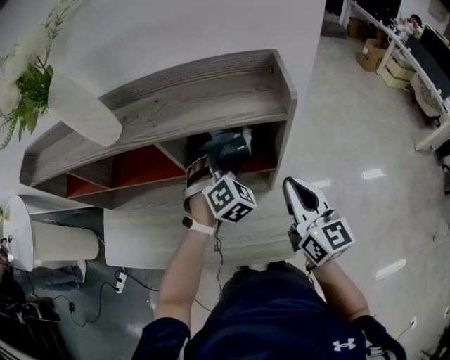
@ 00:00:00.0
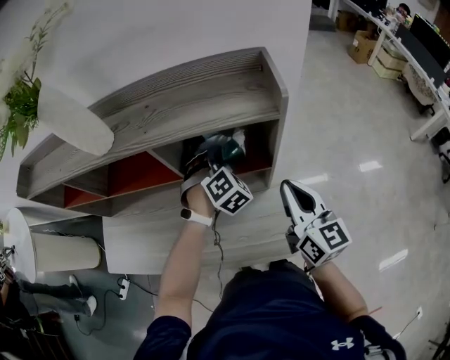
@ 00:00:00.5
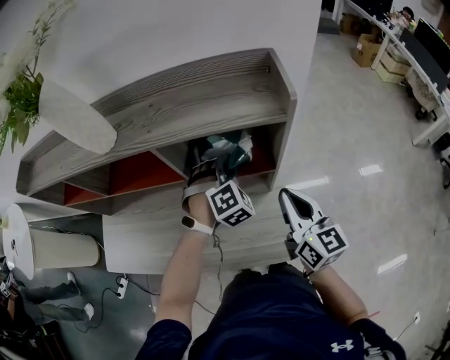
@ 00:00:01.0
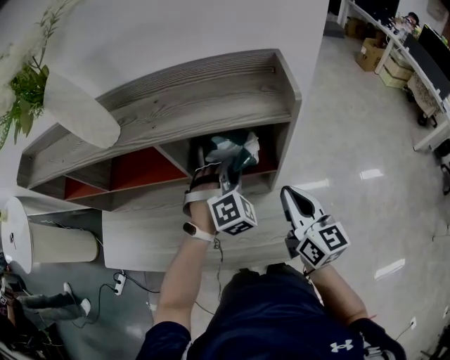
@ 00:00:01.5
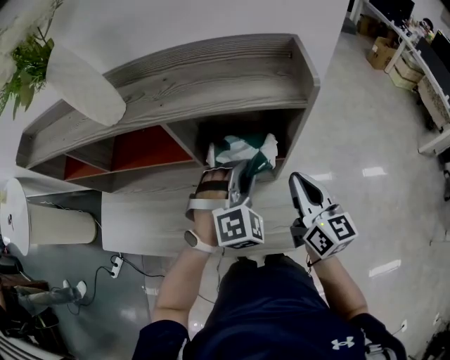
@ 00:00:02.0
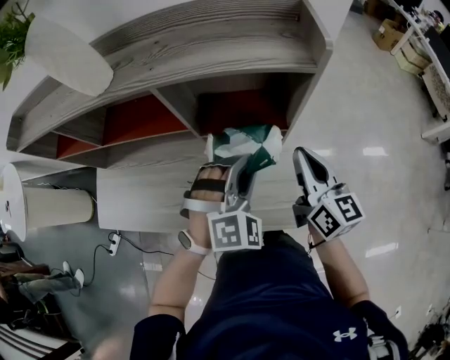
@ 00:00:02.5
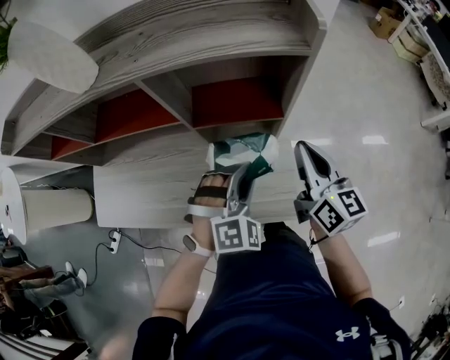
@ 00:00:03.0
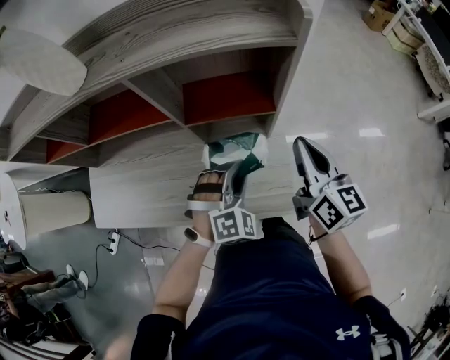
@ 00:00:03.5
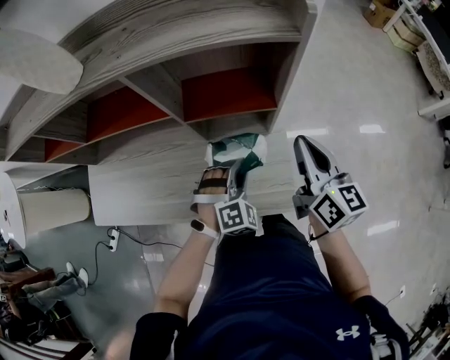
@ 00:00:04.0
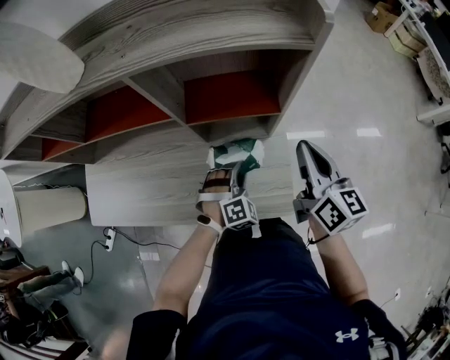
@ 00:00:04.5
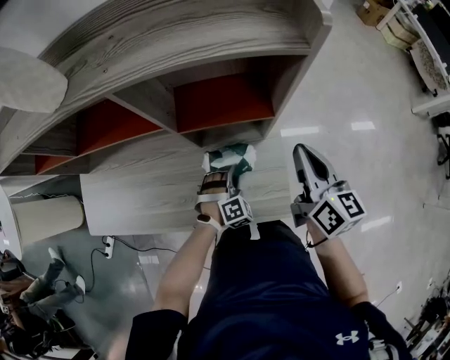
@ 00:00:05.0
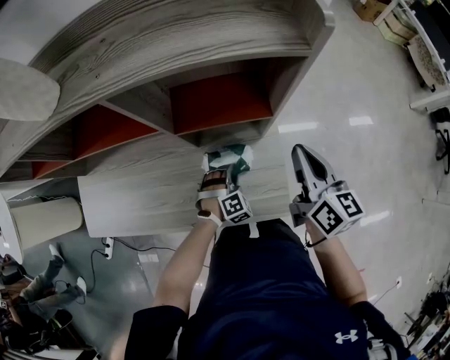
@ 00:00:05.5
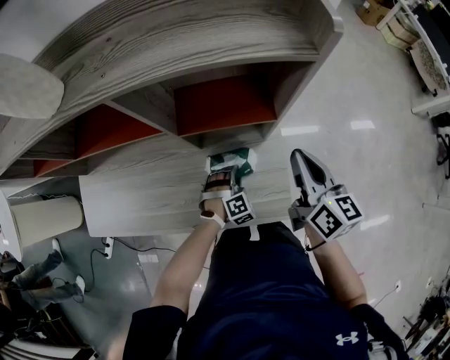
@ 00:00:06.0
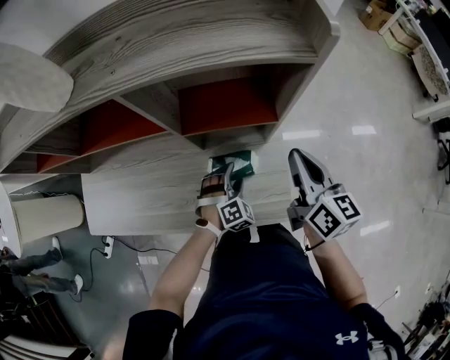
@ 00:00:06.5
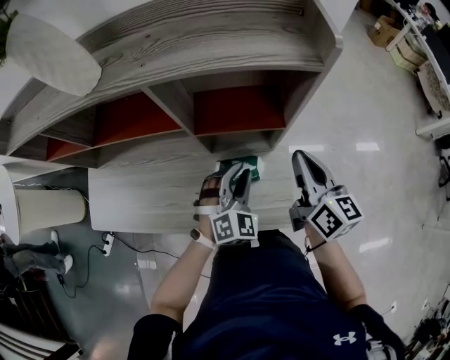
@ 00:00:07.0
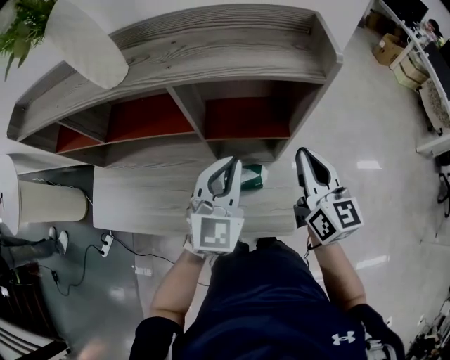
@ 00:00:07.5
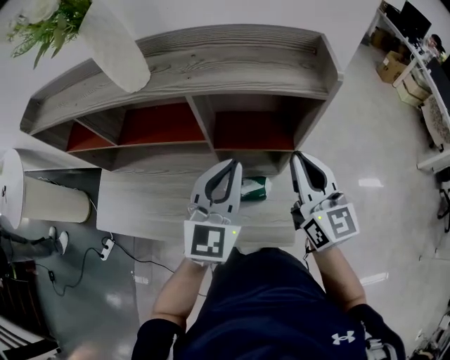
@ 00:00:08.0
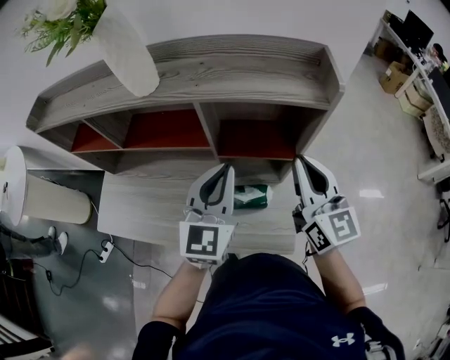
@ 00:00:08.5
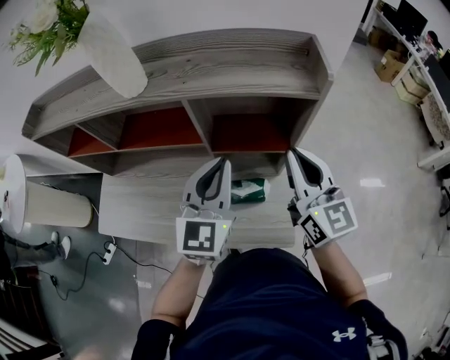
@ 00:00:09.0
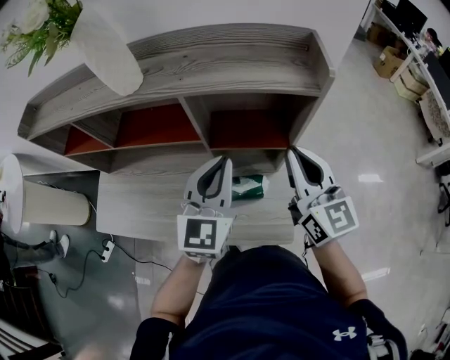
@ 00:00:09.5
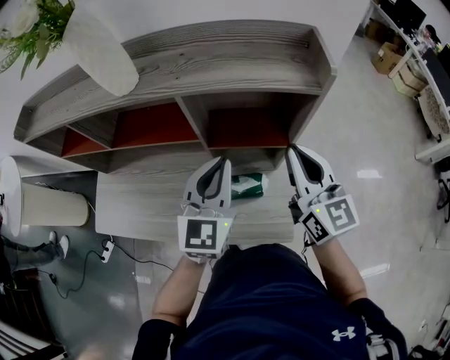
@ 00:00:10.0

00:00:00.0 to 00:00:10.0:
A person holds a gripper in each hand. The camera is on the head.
00:00:00.0 to 00:00:02.0: The left gripper moves backward, roughly 10 cm, and closes.
00:00:02.0 to 00:00:04.0: The left gripper is displaced downward and backward by some 20 cm.
00:00:04.0 to 00:00:06.0: The left gripper shifts about 15 cm downward.
00:00:06.0 to 00:00:08.0: The left gripper is displaced upward by about 40 cm, angles its fingers upward, by about 60 degrees, and closes up, while the right gripper shifts approximately 15 cm upward and to the left, and rotates some 30 degrees.
00:00:08.0 to 00:00:10.0: The grippers stay close to where they were, moving slightly.

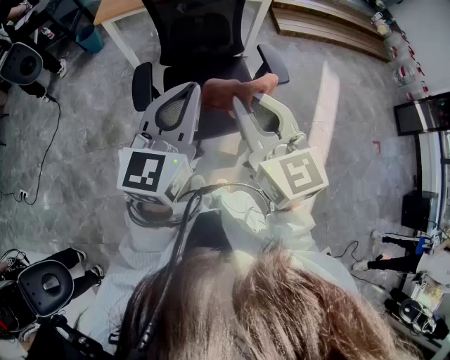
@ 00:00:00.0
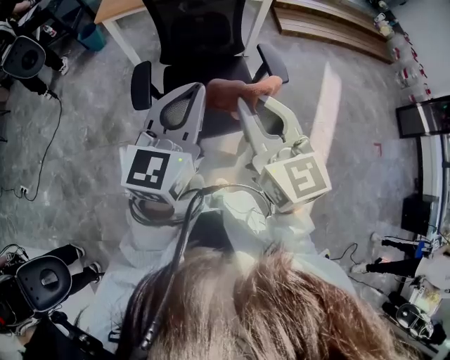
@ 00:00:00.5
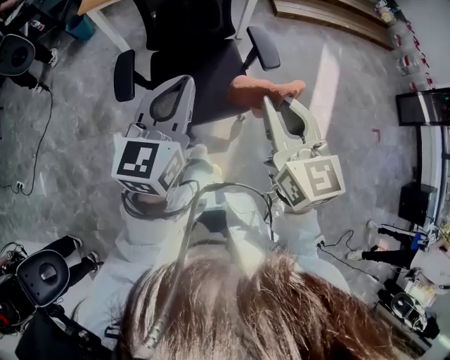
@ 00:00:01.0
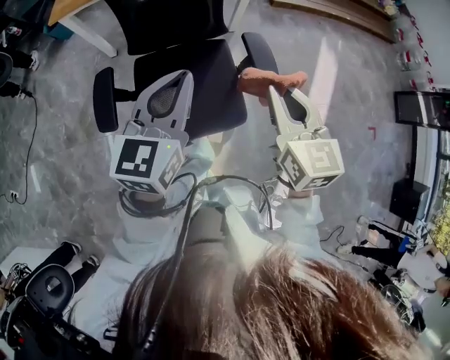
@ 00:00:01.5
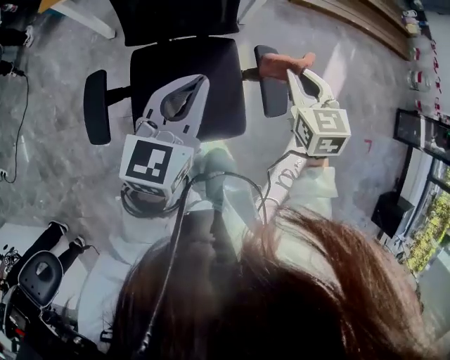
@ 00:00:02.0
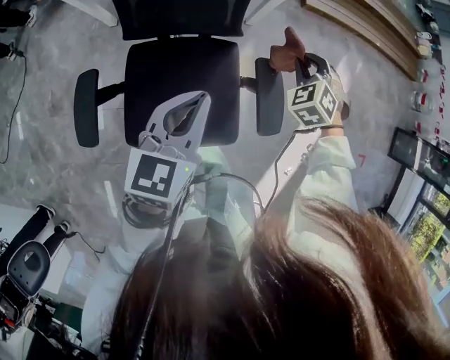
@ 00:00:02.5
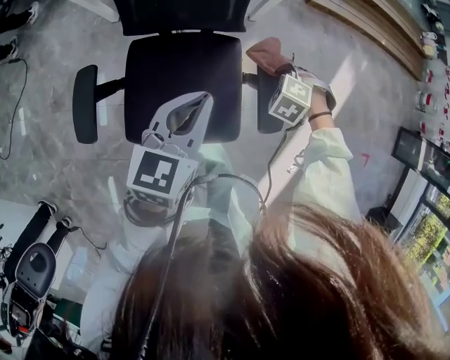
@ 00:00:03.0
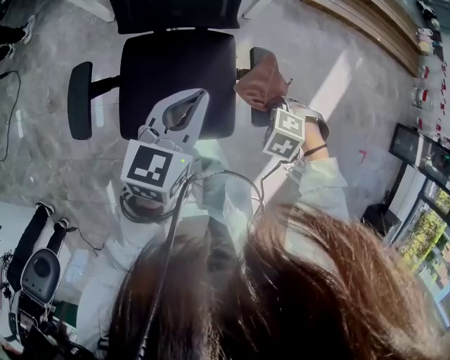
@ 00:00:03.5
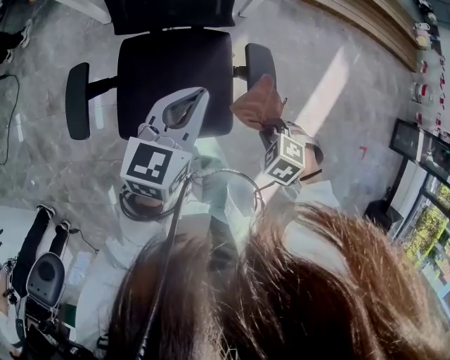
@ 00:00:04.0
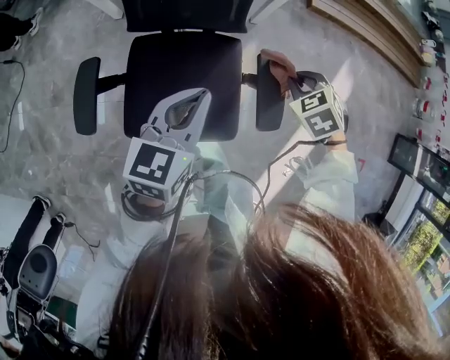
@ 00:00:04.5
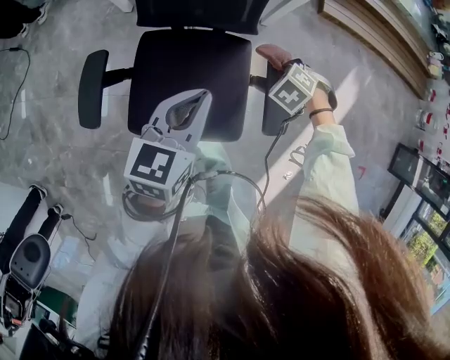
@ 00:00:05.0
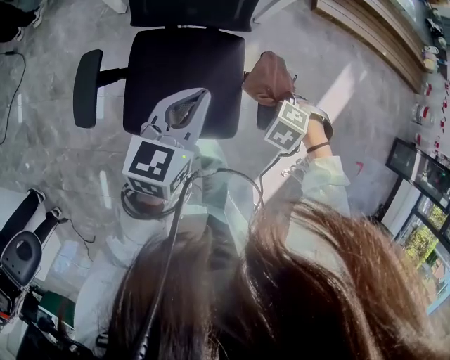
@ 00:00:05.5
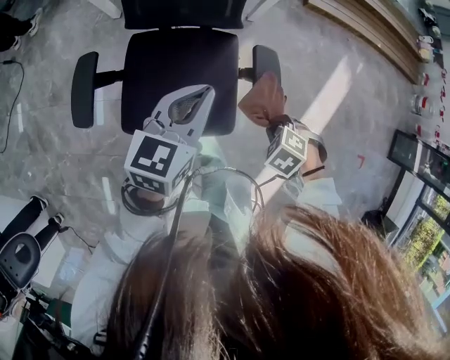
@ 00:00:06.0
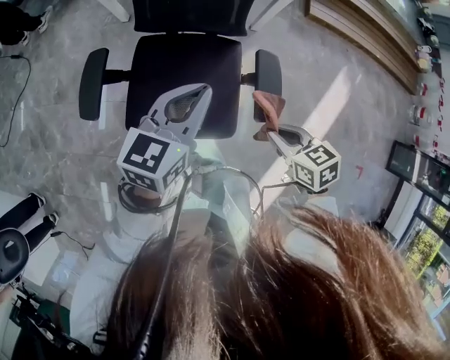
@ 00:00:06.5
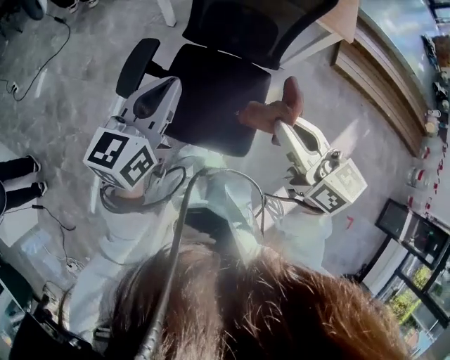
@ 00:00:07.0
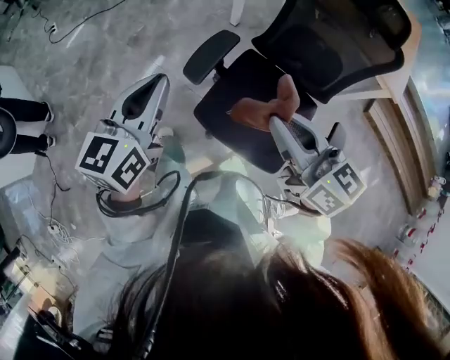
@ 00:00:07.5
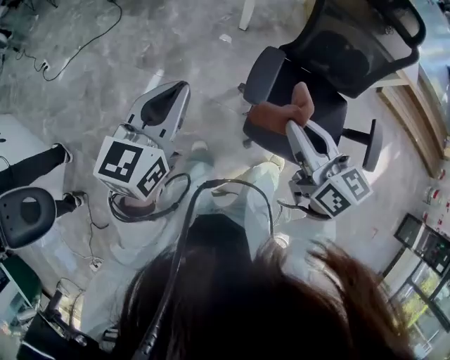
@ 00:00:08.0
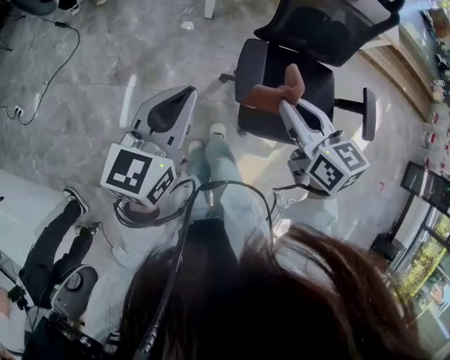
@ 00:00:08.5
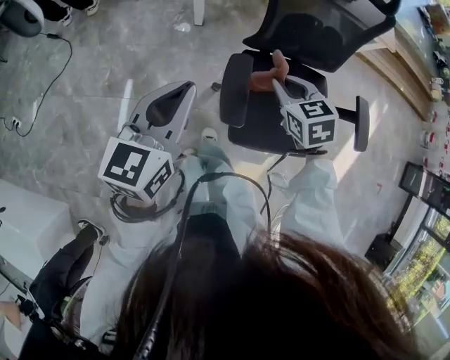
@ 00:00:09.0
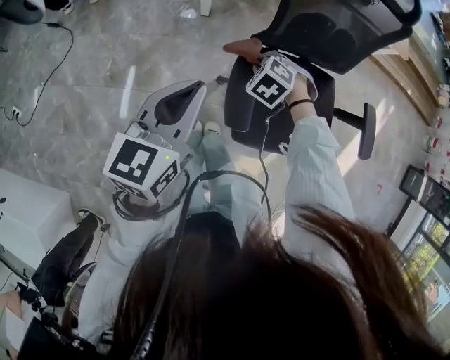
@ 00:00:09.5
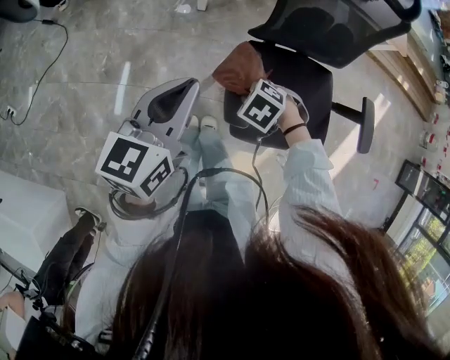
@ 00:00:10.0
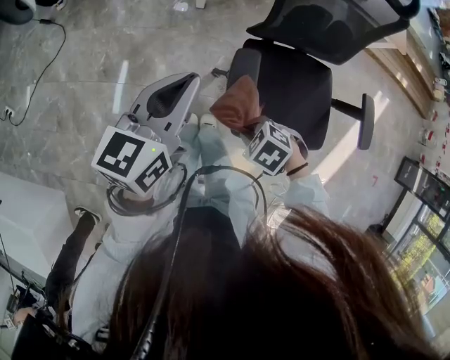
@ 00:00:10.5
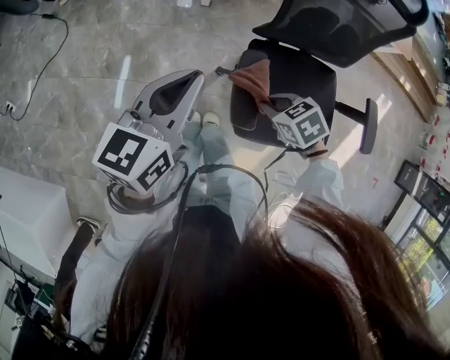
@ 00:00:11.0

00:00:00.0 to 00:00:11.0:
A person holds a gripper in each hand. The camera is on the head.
00:00:00.0 to 00:00:02.0: The left gripper goes about 35 cm forward and downward, while the right gripper moves forward, downward and to the right, some 50 cm, and tips its fingers downward by roughly 30 degrees.
00:00:02.0 to 00:00:03.5: The right gripper heads downward, covering approximately 20 cm, and tilts its fingers roughly 50 degrees downward, while the left gripper travels downward by some 5 cm.
00:00:03.5 to 00:00:05.5: The right gripper goes upward and returns, roughly 5 cm each way.
00:00:05.5 to 00:00:07.5: The right gripper shifts by approximately 50 cm, and tilts its fingers roughly 80 degrees upward, while the left gripper changes place by roughly 40 cm, and turns by approximately 40 degrees.
00:00:07.5 to 00:00:09.0: The right gripper ends up approximately 30 cm from where it was, and points its fingers approximately 40 degrees further downward; the left gripper moves about 25 cm, and changes its angle by about 30 degrees.
00:00:09.0 to 00:00:11.0: The left gripper shifts by about 5 cm. Meanwhile the right gripper is displaced downward by roughly 10 cm, and turns by approximately 30 degrees.

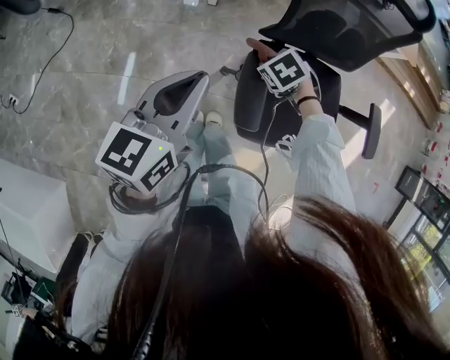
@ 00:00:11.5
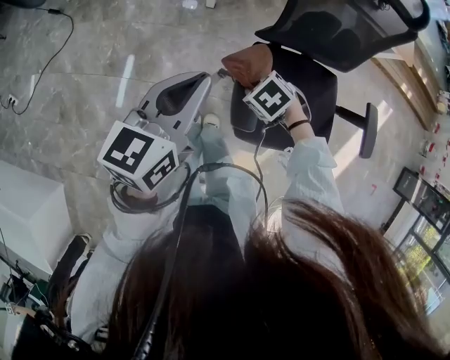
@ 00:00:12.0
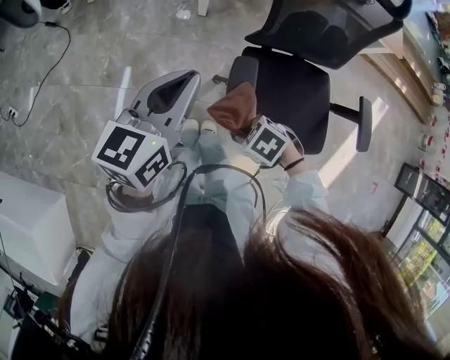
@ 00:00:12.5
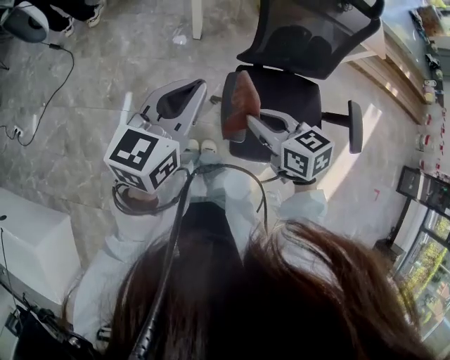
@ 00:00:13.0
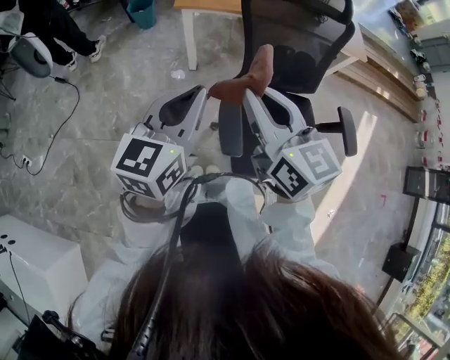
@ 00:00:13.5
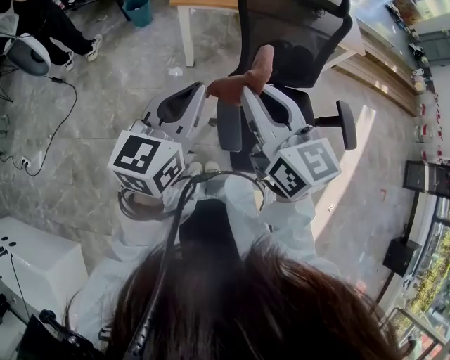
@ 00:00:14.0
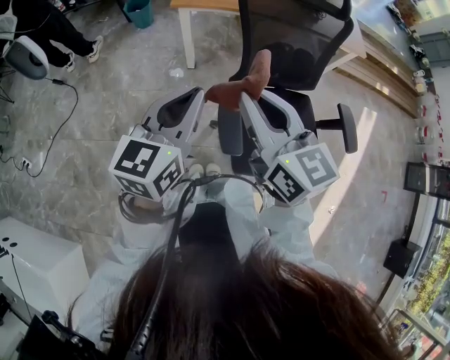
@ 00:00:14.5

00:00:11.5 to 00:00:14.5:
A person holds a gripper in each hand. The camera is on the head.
00:00:11.5 to 00:00:13.0: The right gripper heads upward, covering some 20 cm, and angles its fingers upward, by approximately 40 degrees. Meanwhile the left gripper travels upward by about 5 cm.
00:00:13.0 to 00:00:14.5: The right gripper goes roughly 20 cm upward, and rotates roughly 40 degrees. Meanwhile the left gripper heads upward, covering roughly 5 cm.

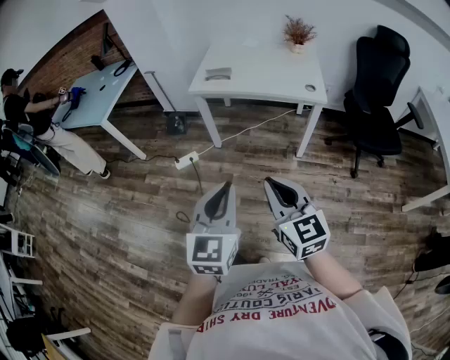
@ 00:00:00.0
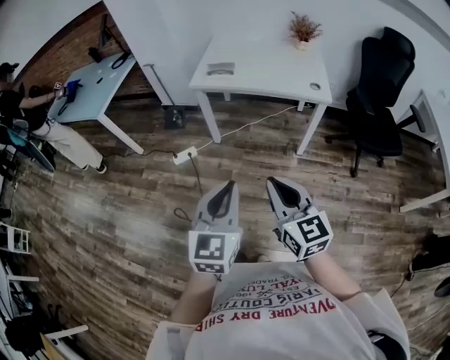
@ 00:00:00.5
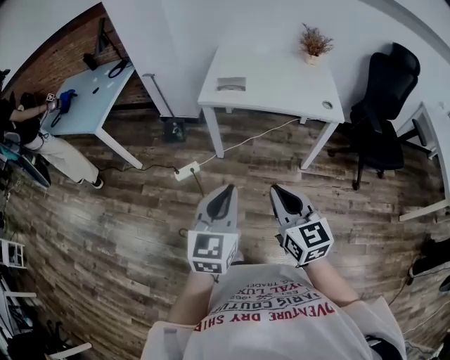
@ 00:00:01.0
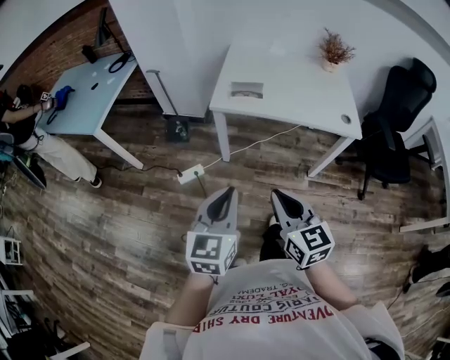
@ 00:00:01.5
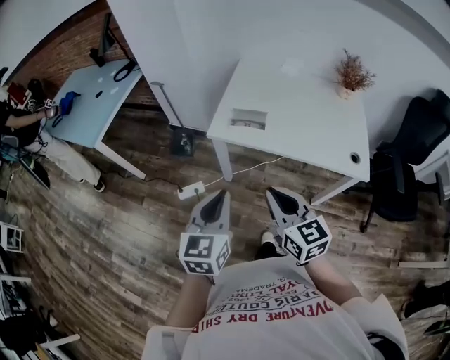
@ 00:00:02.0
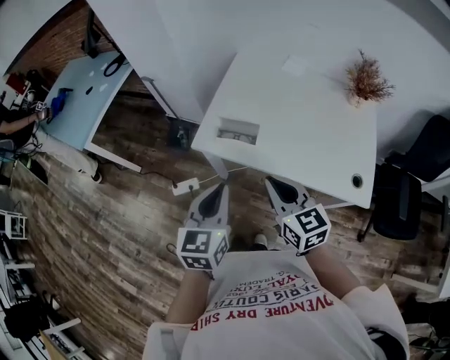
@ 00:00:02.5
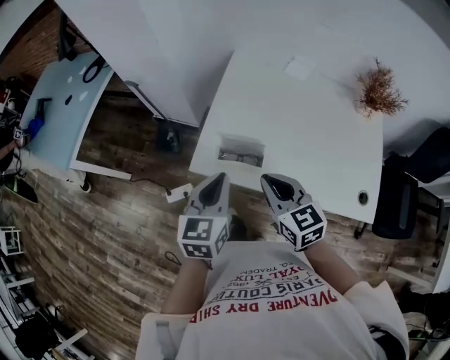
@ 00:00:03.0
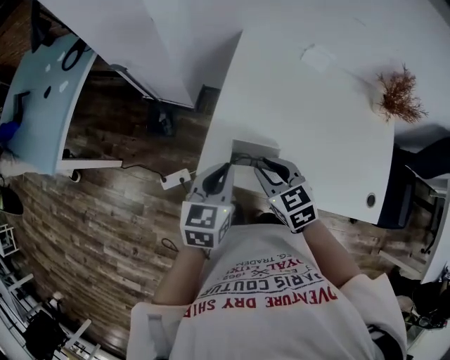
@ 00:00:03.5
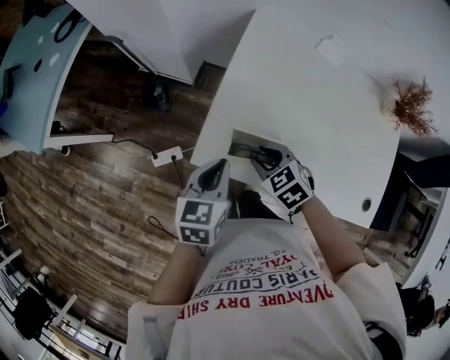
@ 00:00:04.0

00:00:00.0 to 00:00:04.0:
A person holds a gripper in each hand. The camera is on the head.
00:00:00.0 to 00:00:02.0: The pair of grippers is taken forward, about 40 cm.
00:00:02.0 to 00:00:04.0: Both grippers move forward and downward, roughly 40 cm. The right gripper tilts its fingers roughly 40 degrees downward, and opens up. Meanwhile the left gripper swivels about 30 degrees.
